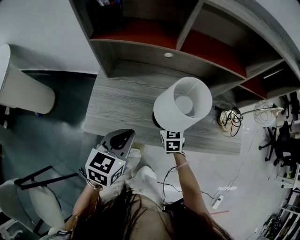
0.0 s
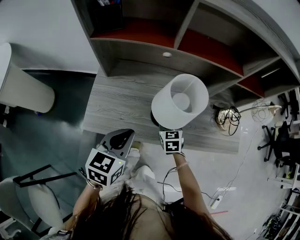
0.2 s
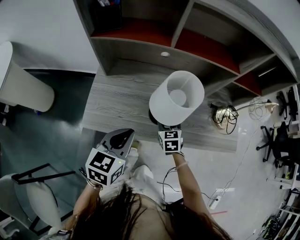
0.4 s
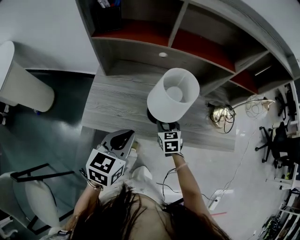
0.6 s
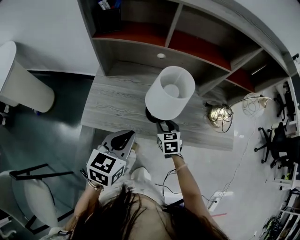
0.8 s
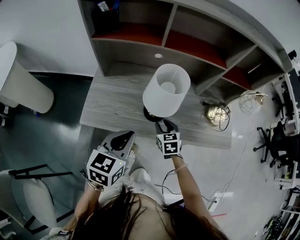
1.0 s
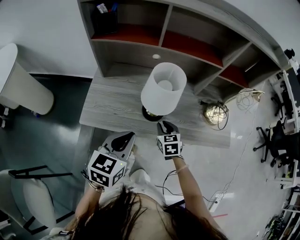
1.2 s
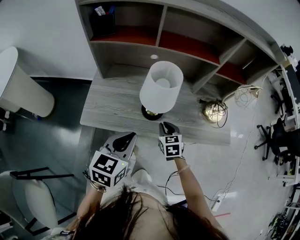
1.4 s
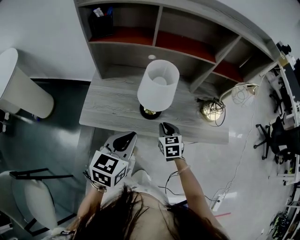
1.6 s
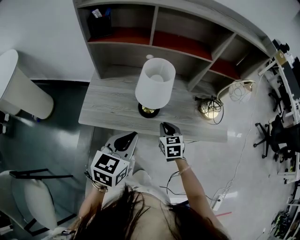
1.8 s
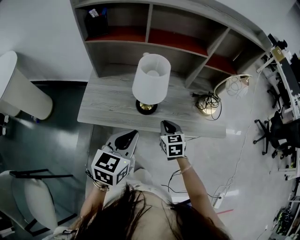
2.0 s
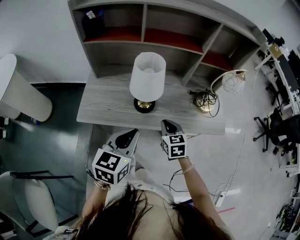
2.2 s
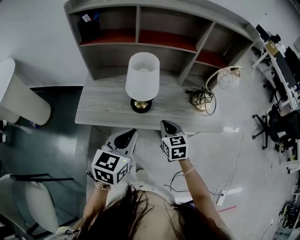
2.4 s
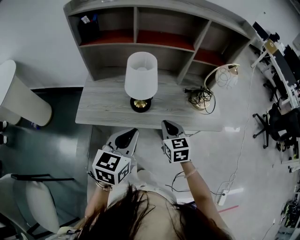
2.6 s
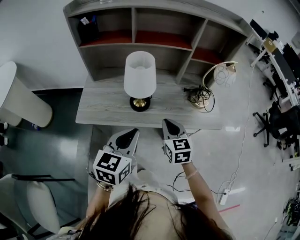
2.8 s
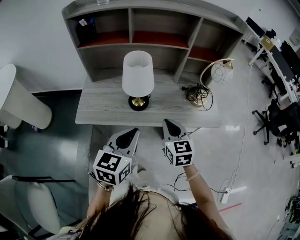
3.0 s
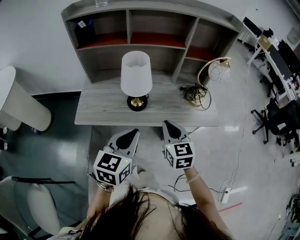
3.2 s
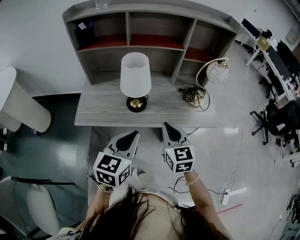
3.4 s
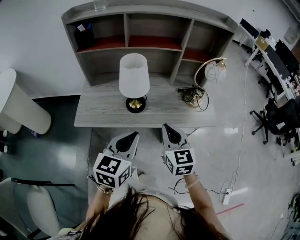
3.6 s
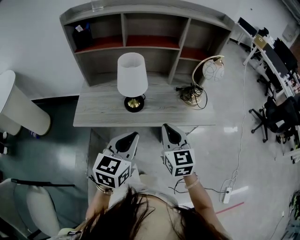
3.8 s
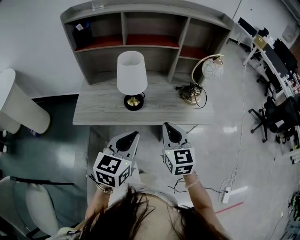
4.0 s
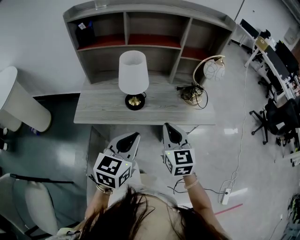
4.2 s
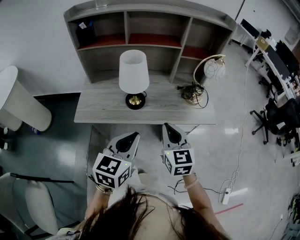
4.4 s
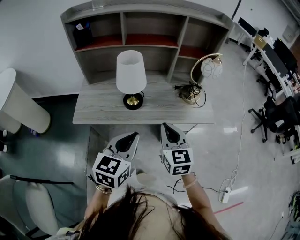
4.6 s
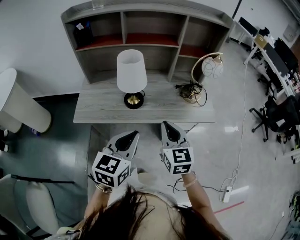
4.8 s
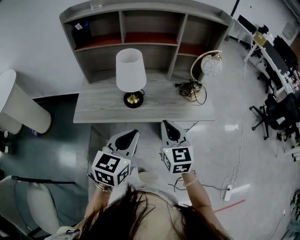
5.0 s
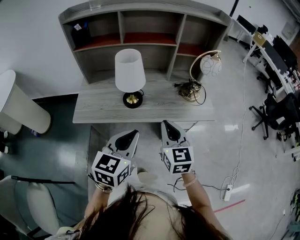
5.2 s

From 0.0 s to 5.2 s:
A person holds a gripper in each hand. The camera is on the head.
From 0.0 s to 1.8 s: The left gripper heads backward and to the right, covering roughly 15 cm. The right gripper moves backward, to the right and upward, roughly 15 cm, and closes up.
From 1.8 s to 3.4 s: The left gripper moves to the right and backward, approximately 10 cm. Meanwhile the right gripper is displaced upward, backward and to the right by about 20 cm, and rotates about 20 degrees.
From 3.4 s to 5.2 s: The grippers make only small movements.

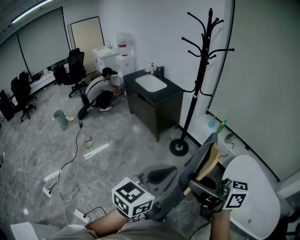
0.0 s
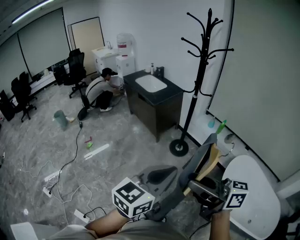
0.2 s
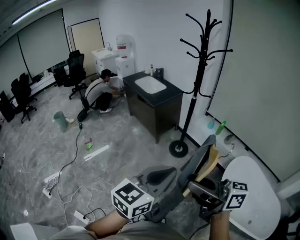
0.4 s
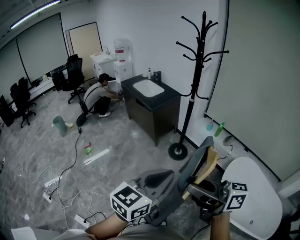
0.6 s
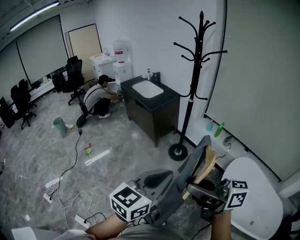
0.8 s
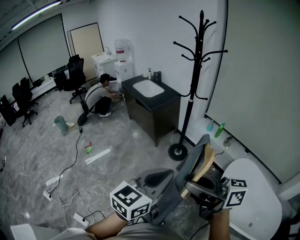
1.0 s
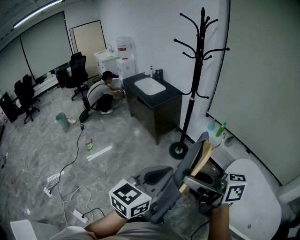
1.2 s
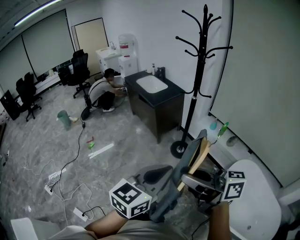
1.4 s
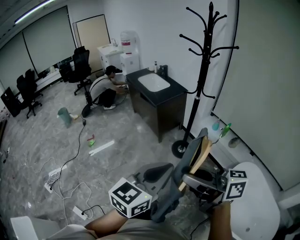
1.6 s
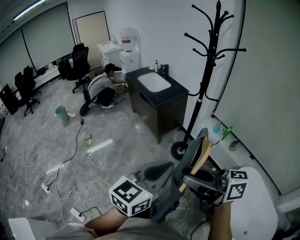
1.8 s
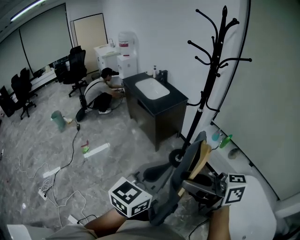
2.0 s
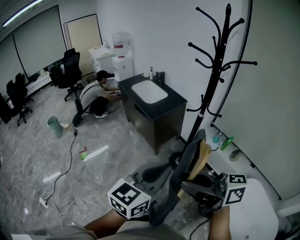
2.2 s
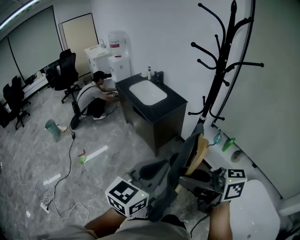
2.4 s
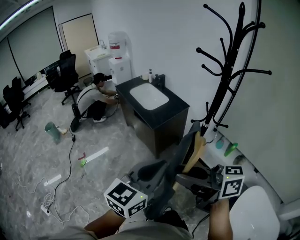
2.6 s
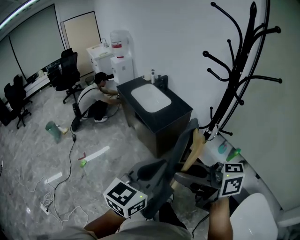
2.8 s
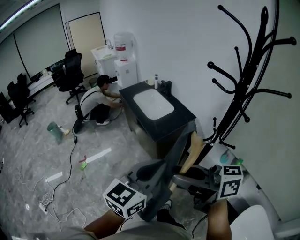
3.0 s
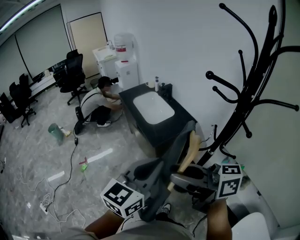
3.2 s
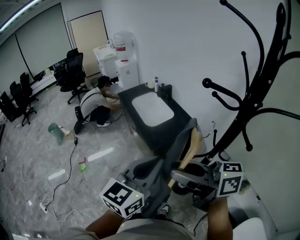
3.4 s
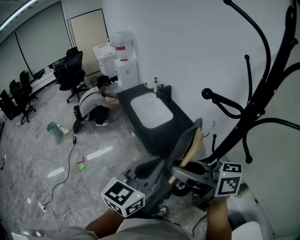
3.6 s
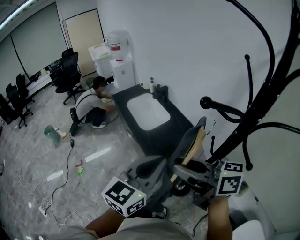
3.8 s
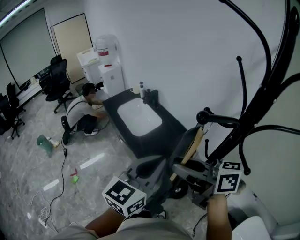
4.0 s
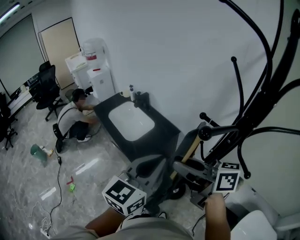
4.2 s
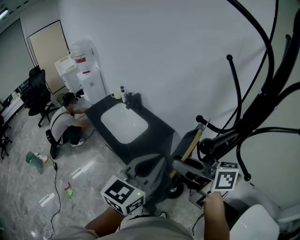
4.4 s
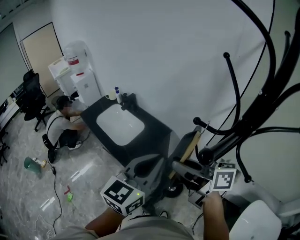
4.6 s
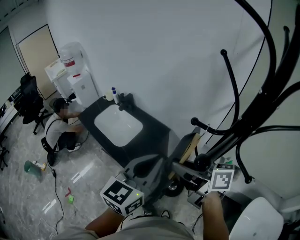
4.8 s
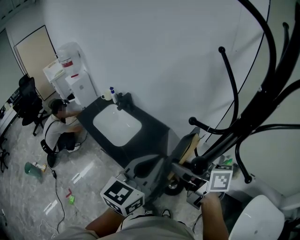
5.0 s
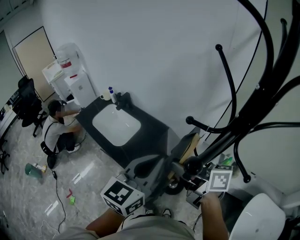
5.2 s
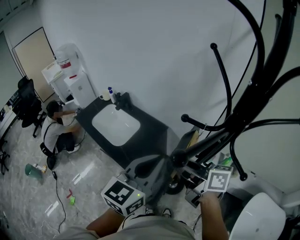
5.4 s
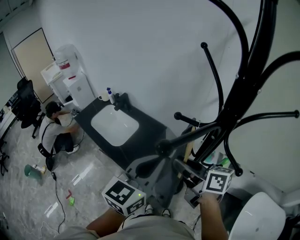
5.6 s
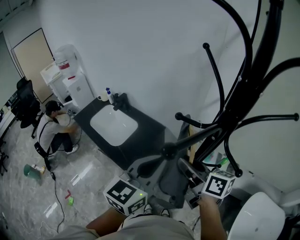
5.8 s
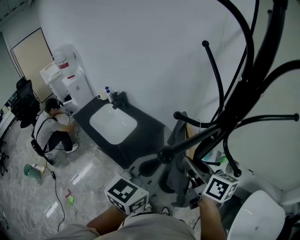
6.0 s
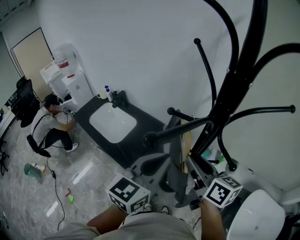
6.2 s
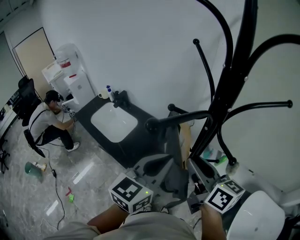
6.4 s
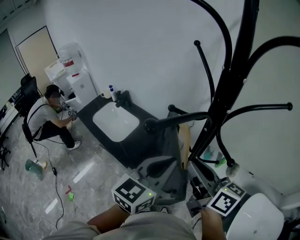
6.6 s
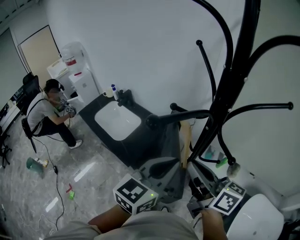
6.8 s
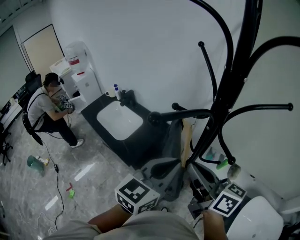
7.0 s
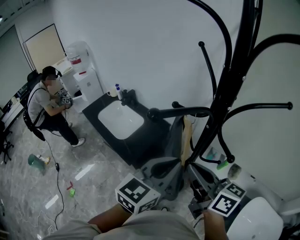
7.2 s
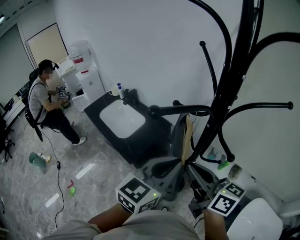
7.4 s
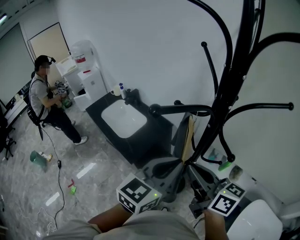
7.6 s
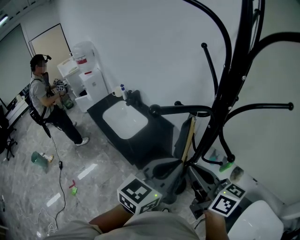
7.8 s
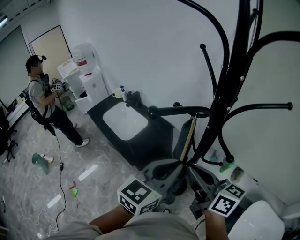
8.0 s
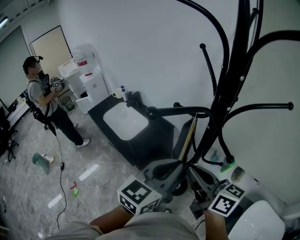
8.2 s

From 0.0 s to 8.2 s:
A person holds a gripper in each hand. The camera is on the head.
From 0.0 s to 1.6 s: The right gripper goes approximately 5 cm forward; the left gripper is displaced forward and to the right by roughly 10 cm.
From 1.6 s to 3.2 s: The pair of grippers is taken forward, about 50 cm.
From 3.2 s to 5.0 s: The right gripper shifts by some 30 cm, and rotates roughly 30 degrees; the left gripper ends up approximately 25 cm from where it was, and swivels about 20 degrees.
From 5.0 s to 6.6 s: The right gripper shifts roughly 15 cm to the right, backward and upward, and changes its angle by about 30 degrees. The left gripper goes some 10 cm to the right and backward.
From 6.6 s to 8.2 s: The grippers make only small movements.

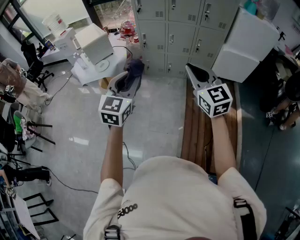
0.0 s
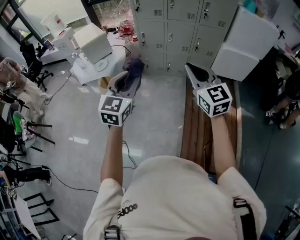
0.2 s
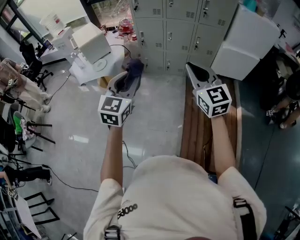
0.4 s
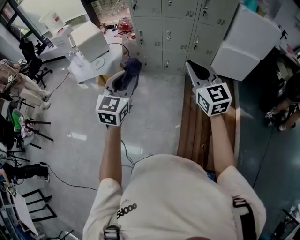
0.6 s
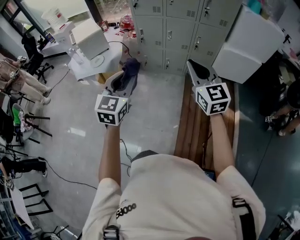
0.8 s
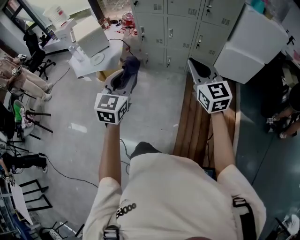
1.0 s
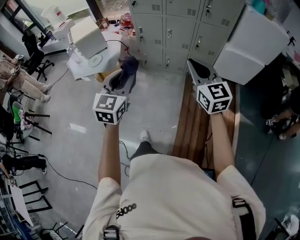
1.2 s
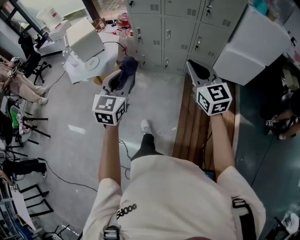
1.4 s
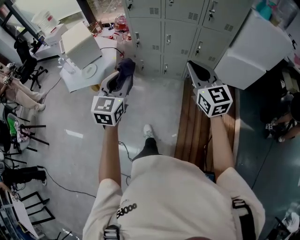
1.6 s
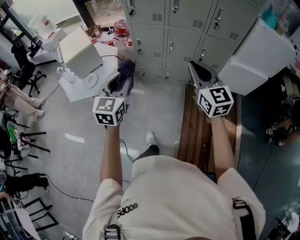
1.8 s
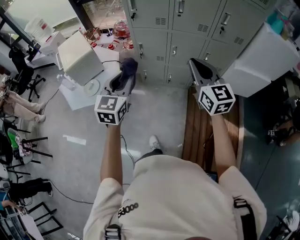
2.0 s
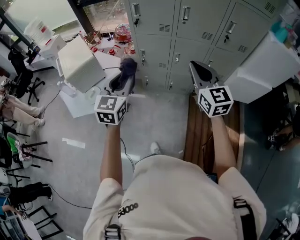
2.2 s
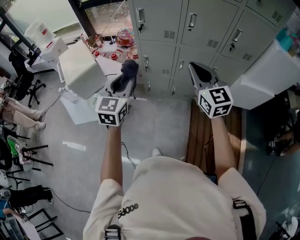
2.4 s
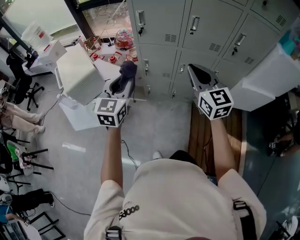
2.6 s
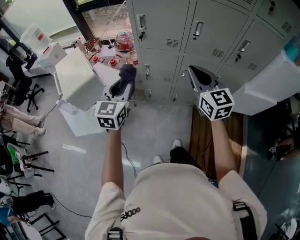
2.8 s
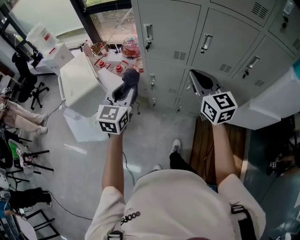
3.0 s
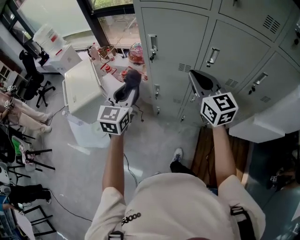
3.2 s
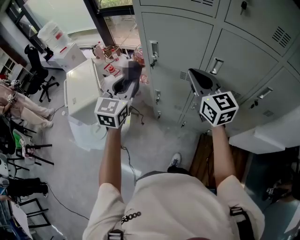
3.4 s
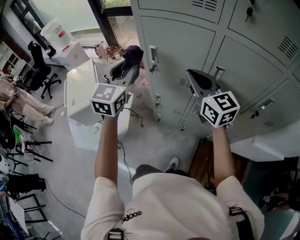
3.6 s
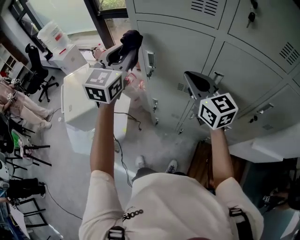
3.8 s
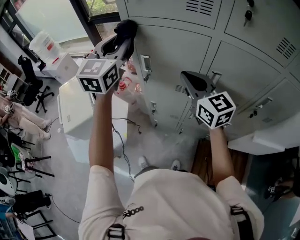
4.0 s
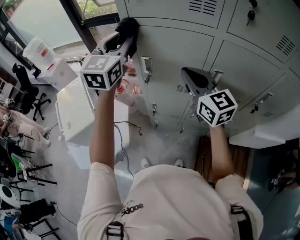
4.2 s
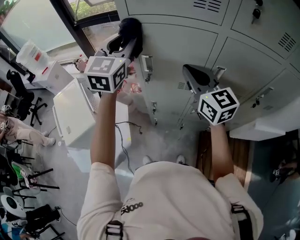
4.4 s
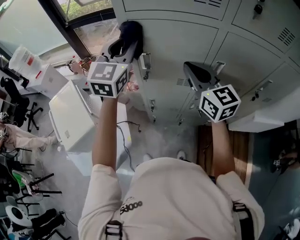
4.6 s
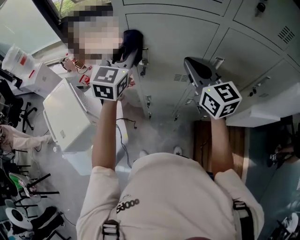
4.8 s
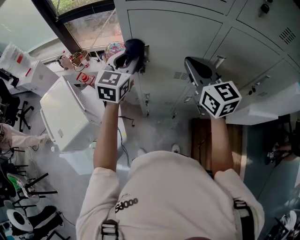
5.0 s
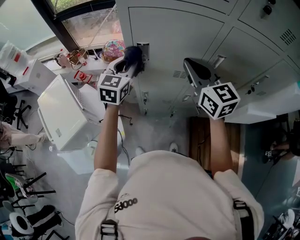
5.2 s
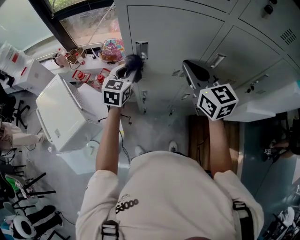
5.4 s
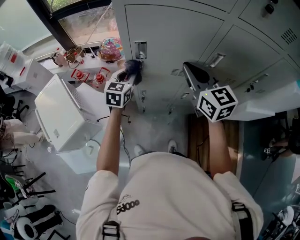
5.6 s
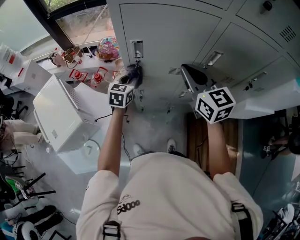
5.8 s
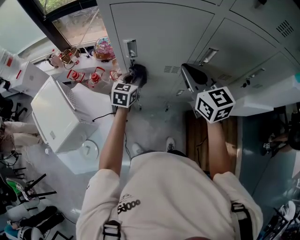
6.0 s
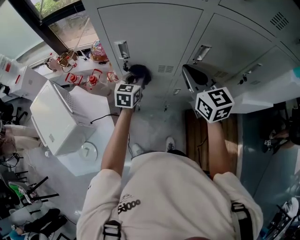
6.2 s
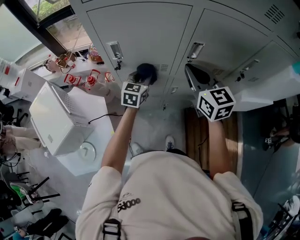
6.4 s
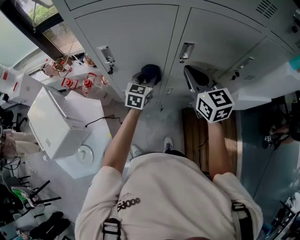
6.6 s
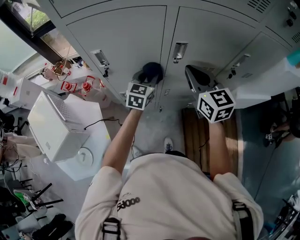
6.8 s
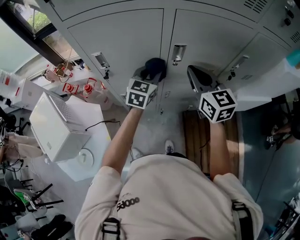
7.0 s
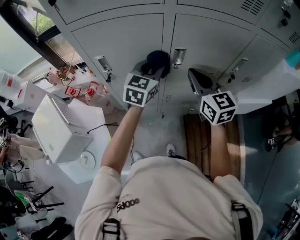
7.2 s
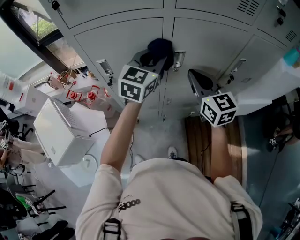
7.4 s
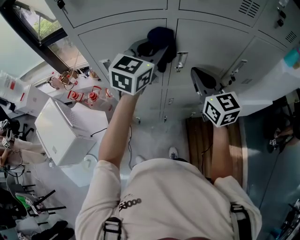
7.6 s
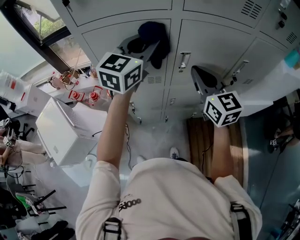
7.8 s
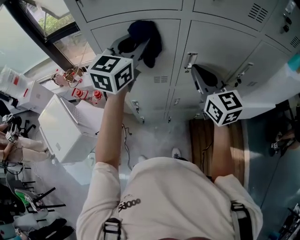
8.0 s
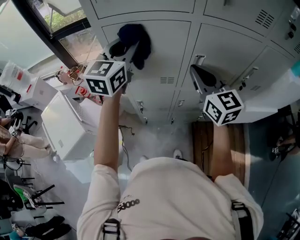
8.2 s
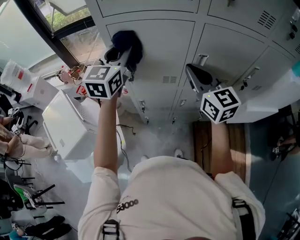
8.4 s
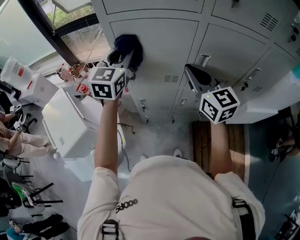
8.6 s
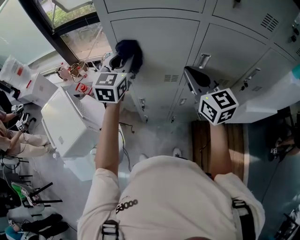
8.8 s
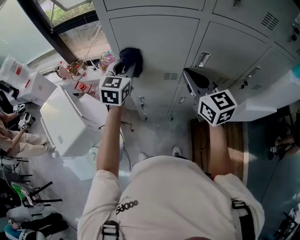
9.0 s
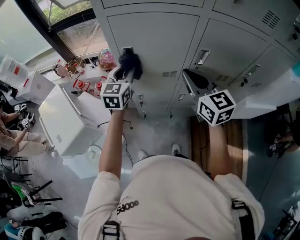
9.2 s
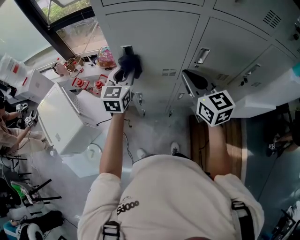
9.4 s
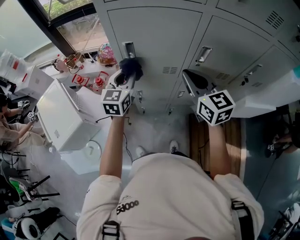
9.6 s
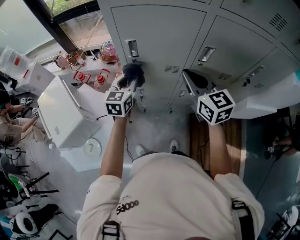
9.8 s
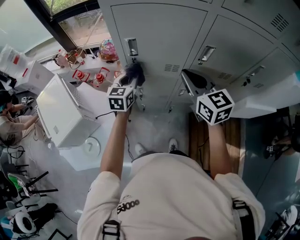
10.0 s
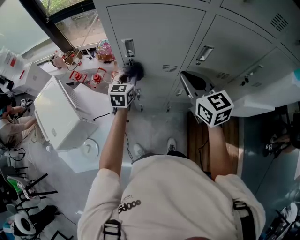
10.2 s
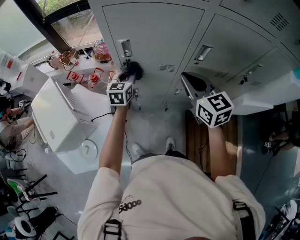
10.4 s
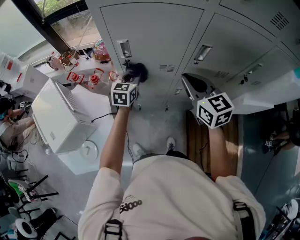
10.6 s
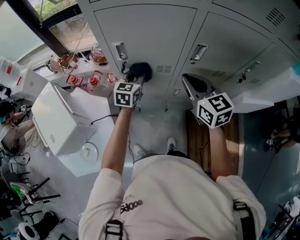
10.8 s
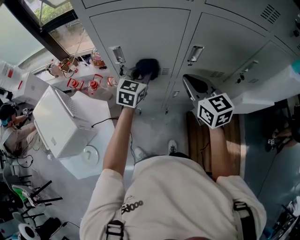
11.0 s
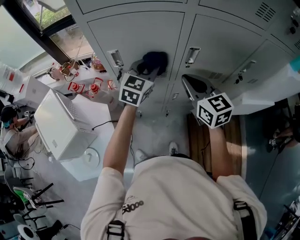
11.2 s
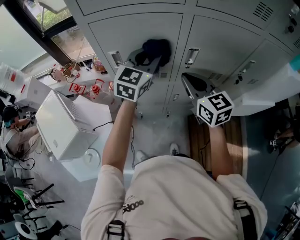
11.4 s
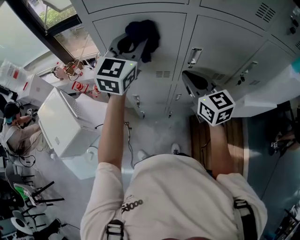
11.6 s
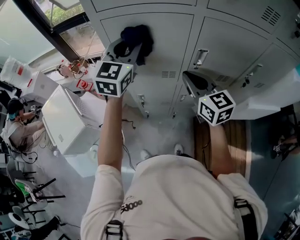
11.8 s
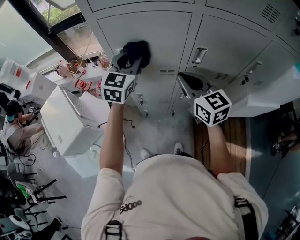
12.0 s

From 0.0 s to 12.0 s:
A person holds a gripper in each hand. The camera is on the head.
From 0.0 s to 1.6 s: The right gripper moves forward and to the right, about 20 cm. Meanwhile the left gripper is displaced forward by approximately 20 cm.
From 1.6 s to 3.0 s: Both grippers are carried forward, some 40 cm.
From 3.0 s to 4.4 s: The left gripper shifts some 35 cm forward and upward, while the right gripper moves forward, about 20 cm.
From 4.4 s to 6.0 s: The left gripper travels downward by some 35 cm, and turns by some 30 degrees. Meanwhile the right gripper moves downward, about 5 cm.
From 6.0 s to 7.6 s: The right gripper shifts some 15 cm to the right. The left gripper travels upward and to the right by some 35 cm, and turns by some 30 degrees.
From 7.6 s to 9.0 s: The right gripper travels to the left by roughly 10 cm; the left gripper shifts some 25 cm to the left and downward, and turns by some 30 degrees.
From 9.0 s to 10.4 s: The right gripper shifts some 5 cm downward; the left gripper goes about 15 cm downward.
From 10.4 s to 12.0 s: The left gripper travels upward by some 20 cm, and changes its angle by about 20 degrees.
